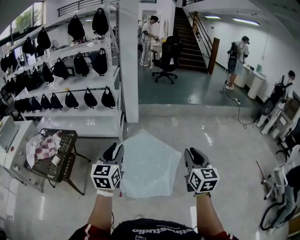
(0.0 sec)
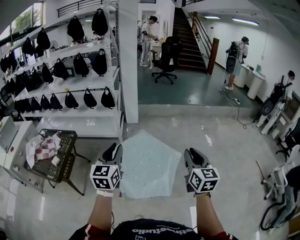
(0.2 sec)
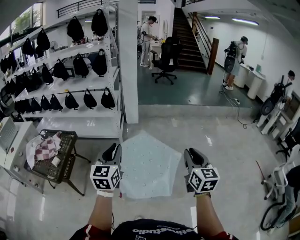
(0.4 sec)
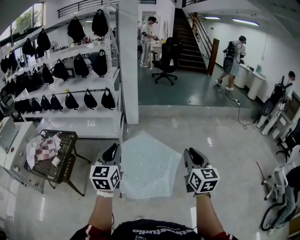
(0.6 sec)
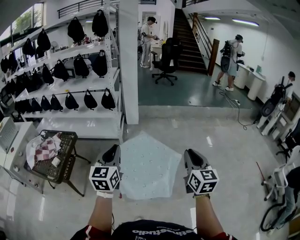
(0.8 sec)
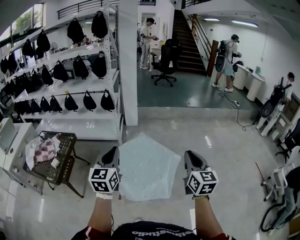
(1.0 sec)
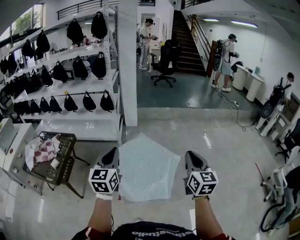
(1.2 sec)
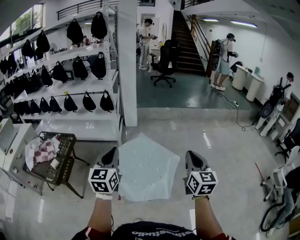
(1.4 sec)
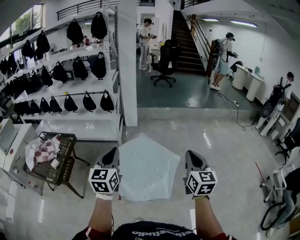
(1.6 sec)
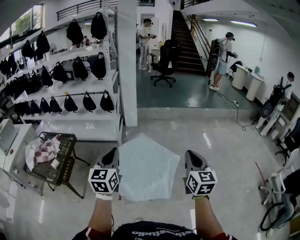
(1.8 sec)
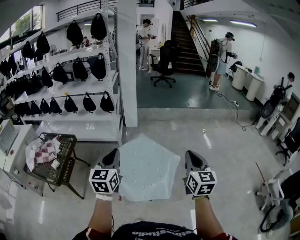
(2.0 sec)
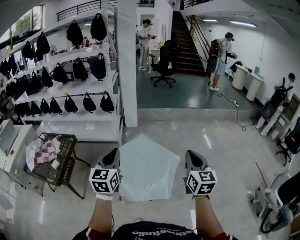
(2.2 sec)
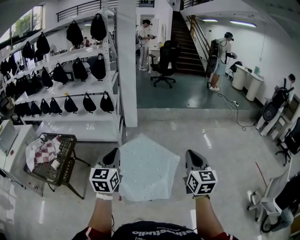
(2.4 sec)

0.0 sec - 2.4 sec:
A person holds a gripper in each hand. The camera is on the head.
0.0 sec - 1.2 sec: The left gripper closes up.
1.2 sec - 2.4 sec: Neither gripper changes place.

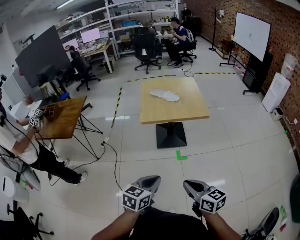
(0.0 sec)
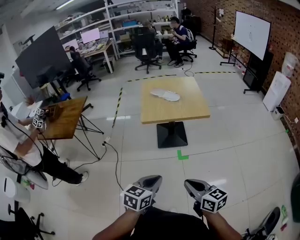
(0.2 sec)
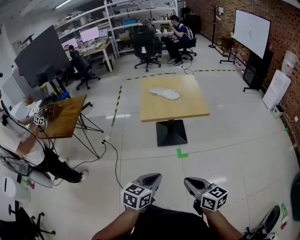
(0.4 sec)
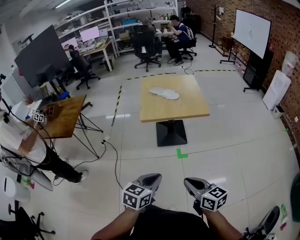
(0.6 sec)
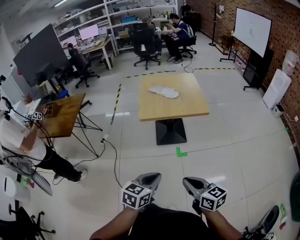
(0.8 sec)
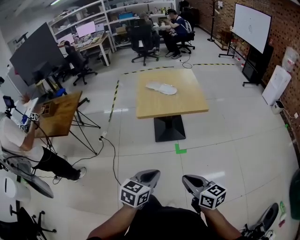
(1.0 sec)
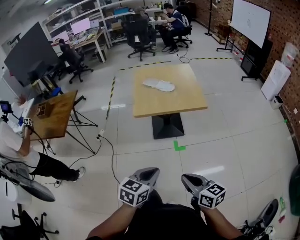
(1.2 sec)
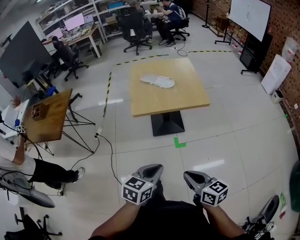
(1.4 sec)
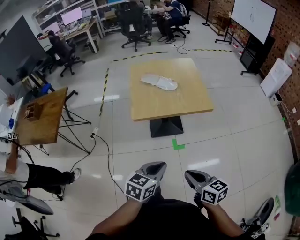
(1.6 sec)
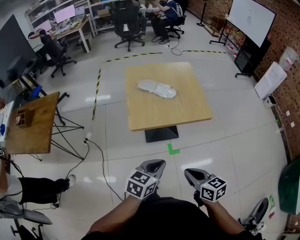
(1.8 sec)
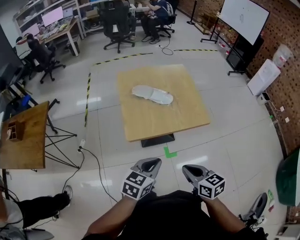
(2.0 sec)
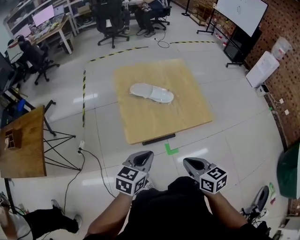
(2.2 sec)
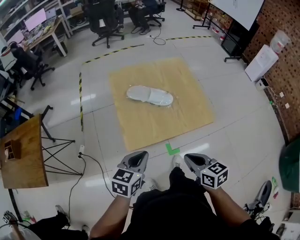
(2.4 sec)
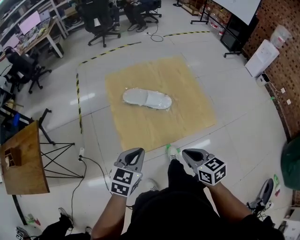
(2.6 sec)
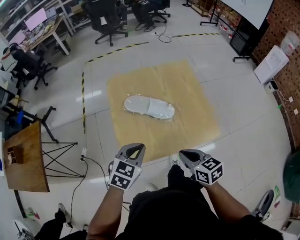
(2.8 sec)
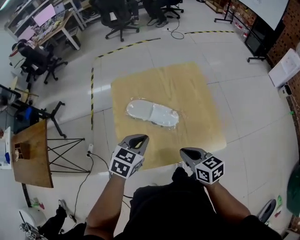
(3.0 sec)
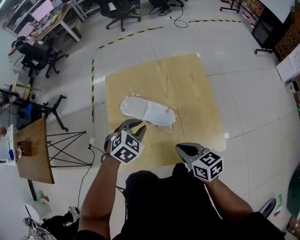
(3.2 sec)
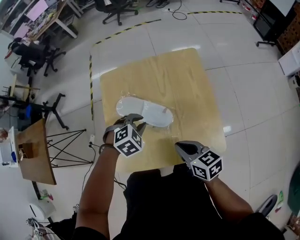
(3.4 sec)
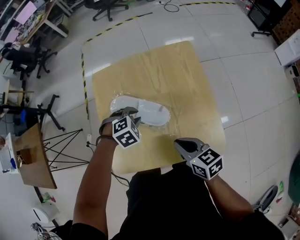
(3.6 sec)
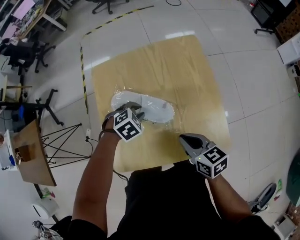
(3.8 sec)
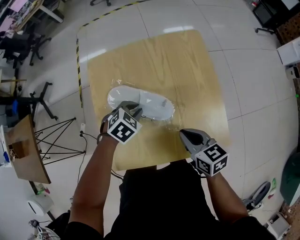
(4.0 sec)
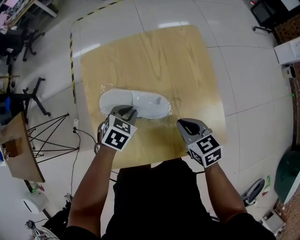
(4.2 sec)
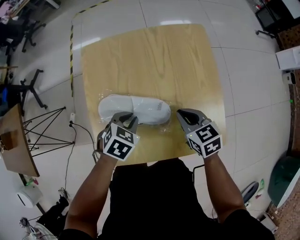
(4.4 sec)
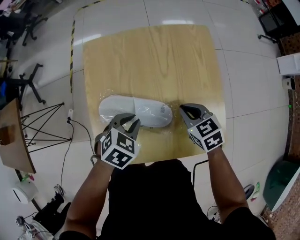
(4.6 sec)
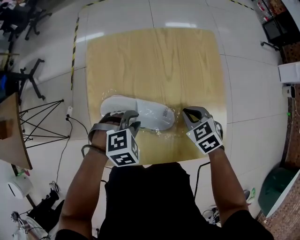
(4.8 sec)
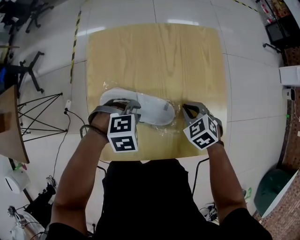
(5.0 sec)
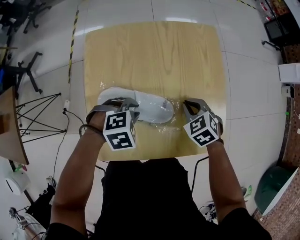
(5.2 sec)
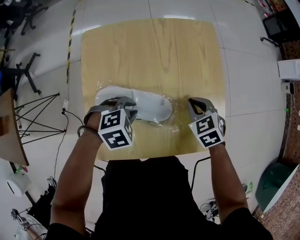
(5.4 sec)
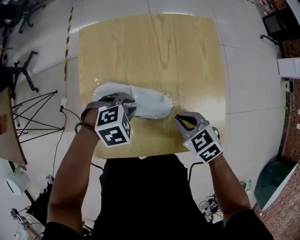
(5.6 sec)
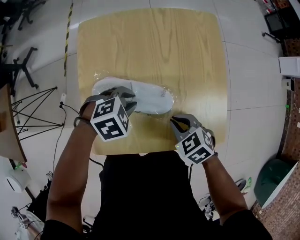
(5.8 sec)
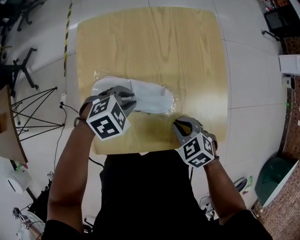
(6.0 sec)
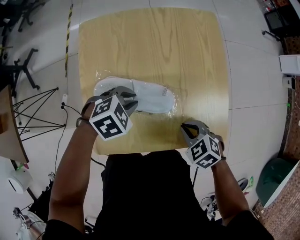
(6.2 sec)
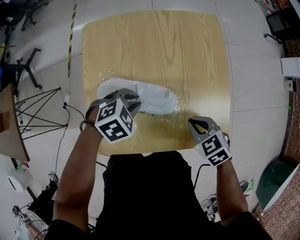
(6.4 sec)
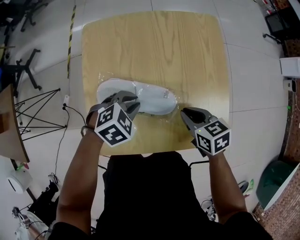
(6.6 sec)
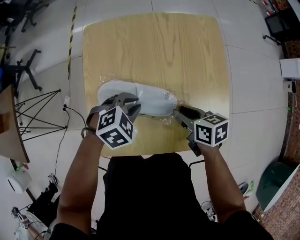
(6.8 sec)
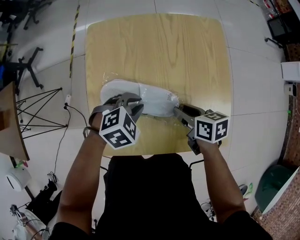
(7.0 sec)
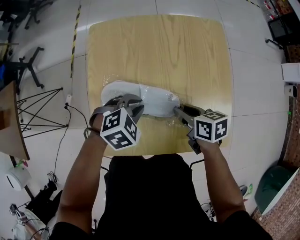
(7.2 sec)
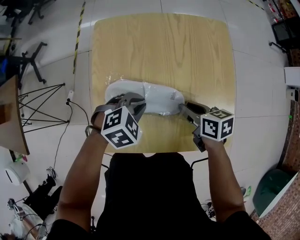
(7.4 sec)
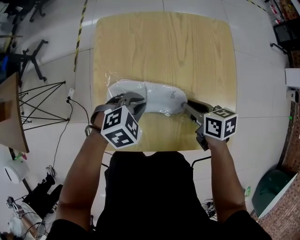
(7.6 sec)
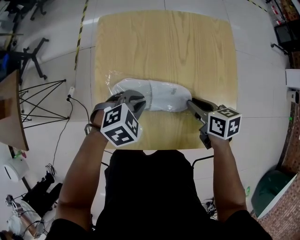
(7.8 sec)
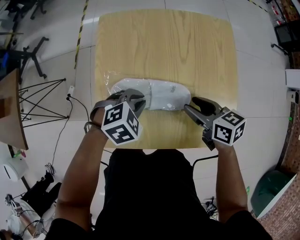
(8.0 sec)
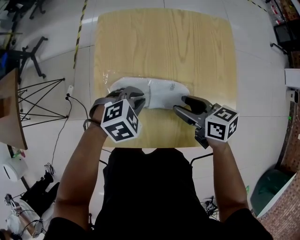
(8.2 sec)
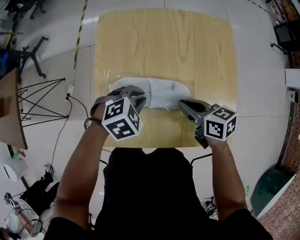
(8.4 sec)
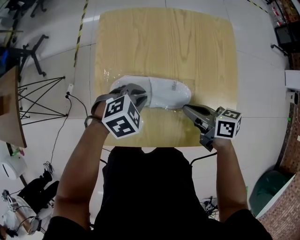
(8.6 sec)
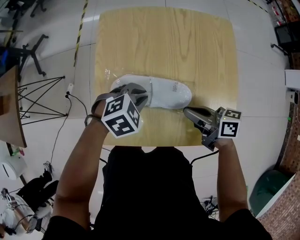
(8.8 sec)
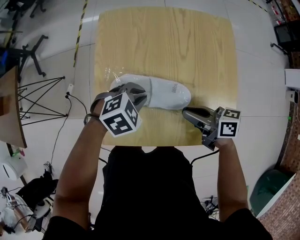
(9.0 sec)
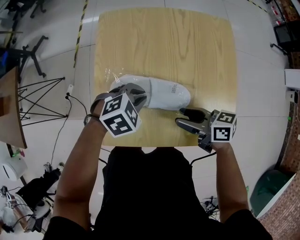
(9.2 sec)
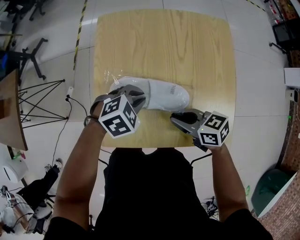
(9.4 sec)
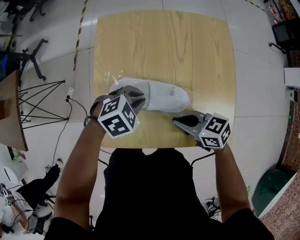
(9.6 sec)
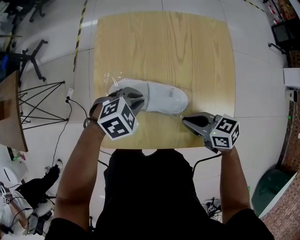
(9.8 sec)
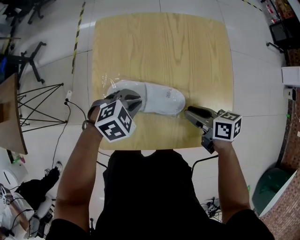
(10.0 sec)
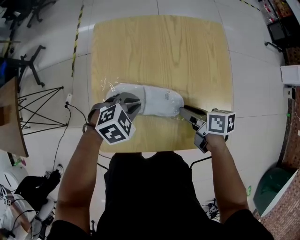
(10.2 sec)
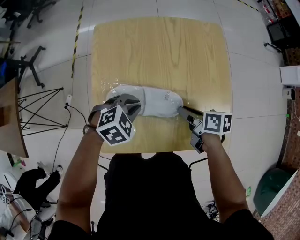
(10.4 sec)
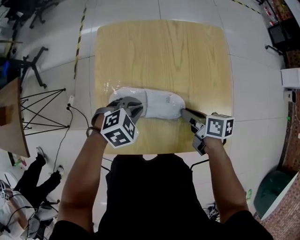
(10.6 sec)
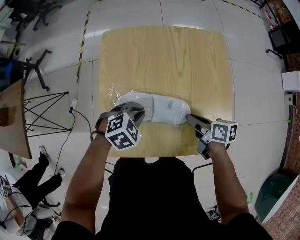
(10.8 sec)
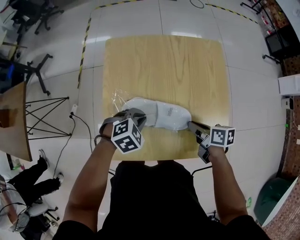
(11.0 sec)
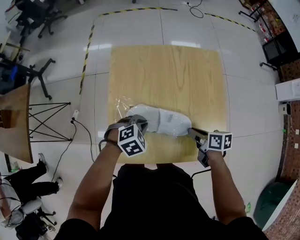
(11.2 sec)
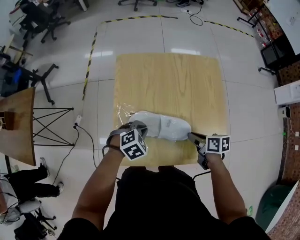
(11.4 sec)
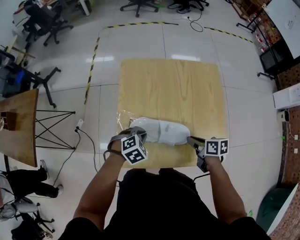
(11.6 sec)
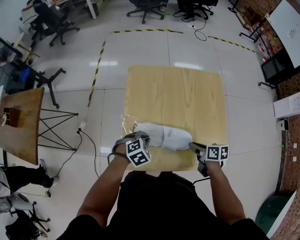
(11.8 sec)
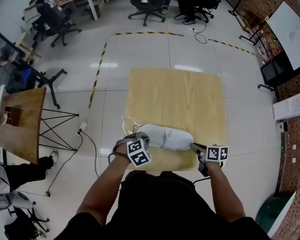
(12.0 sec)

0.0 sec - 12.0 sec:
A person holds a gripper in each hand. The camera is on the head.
0.0 sec - 1.6 sec: The grippers both shift forward by approximately 15 cm.
1.6 sec - 3.0 sec: The pair of grippers is taken forward, roughly 40 cm. The left gripper rotates roughly 20 degrees.
3.0 sec - 4.4 sec: The right gripper is displaced forward and downward by about 20 cm, while the left gripper travels downward and forward by about 15 cm, and turns by roughly 20 degrees.
4.4 sec - 6.0 sec: The left gripper swivels approximately 30 degrees, while the right gripper changes place by about 10 cm, and turns by approximately 30 degrees.
6.0 sec - 7.6 sec: The right gripper changes place by about 10 cm, and rolls clockwise, seen from behind, by approximately 40 degrees.
7.6 sec - 9.0 sec: The right gripper changes place by about 5 cm, turns by some 30 degrees, and opens and closes again.
9.0 sec - 10.4 sec: The right gripper moves downward, approximately 5 cm, rotates approximately 30 degrees, and opens, then closes once more.
10.4 sec - 12.0 sec: The left gripper is displaced to the left by some 5 cm.

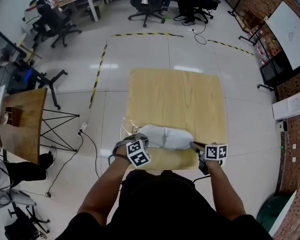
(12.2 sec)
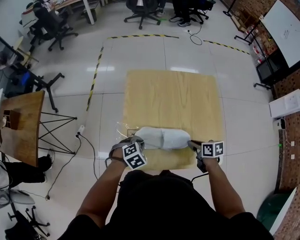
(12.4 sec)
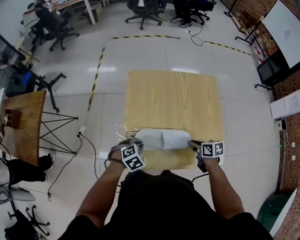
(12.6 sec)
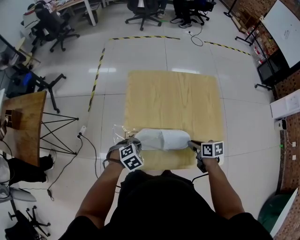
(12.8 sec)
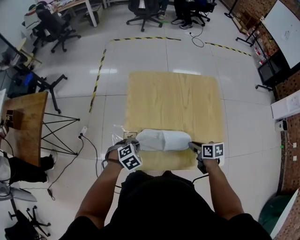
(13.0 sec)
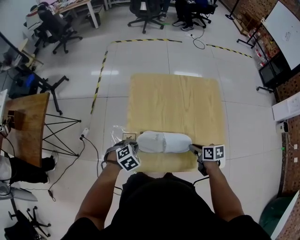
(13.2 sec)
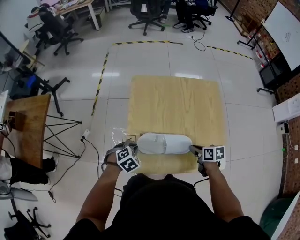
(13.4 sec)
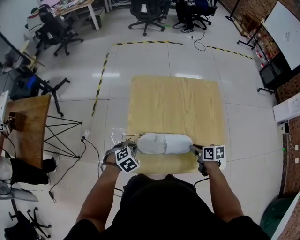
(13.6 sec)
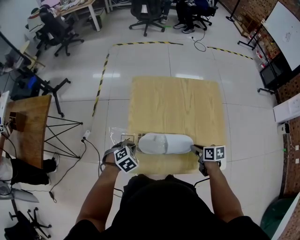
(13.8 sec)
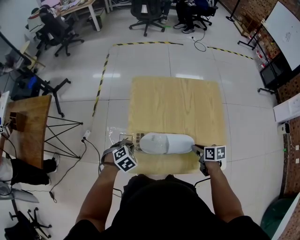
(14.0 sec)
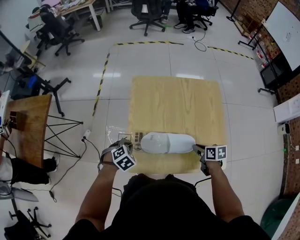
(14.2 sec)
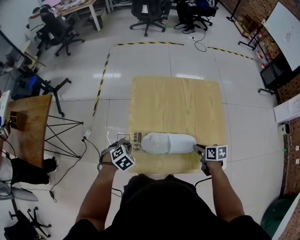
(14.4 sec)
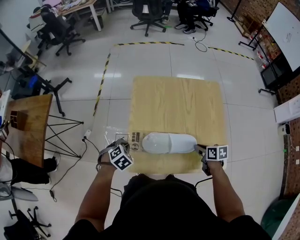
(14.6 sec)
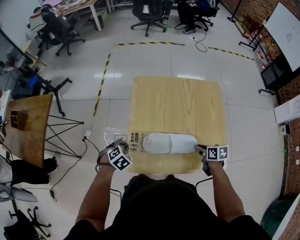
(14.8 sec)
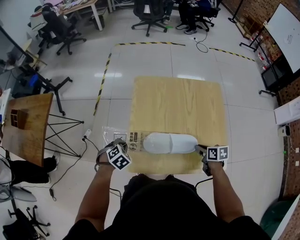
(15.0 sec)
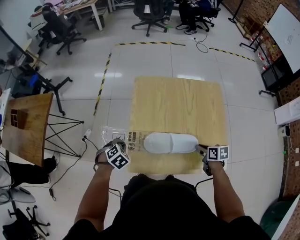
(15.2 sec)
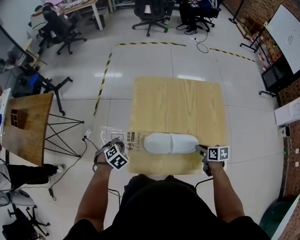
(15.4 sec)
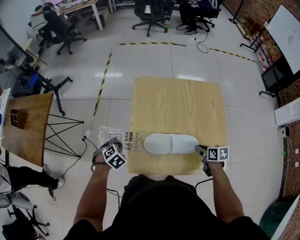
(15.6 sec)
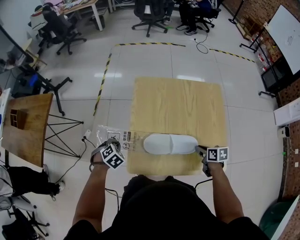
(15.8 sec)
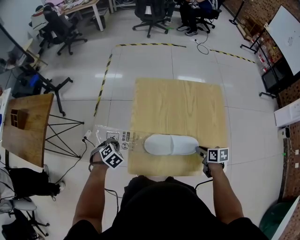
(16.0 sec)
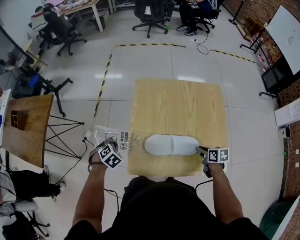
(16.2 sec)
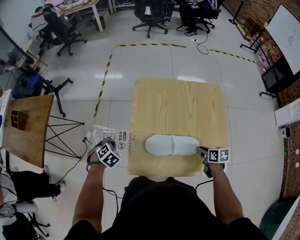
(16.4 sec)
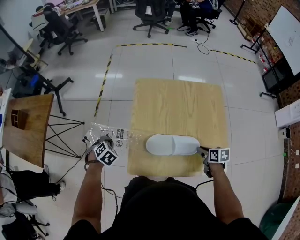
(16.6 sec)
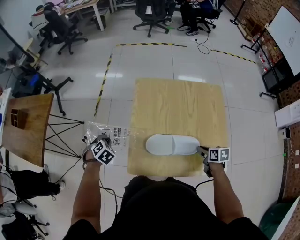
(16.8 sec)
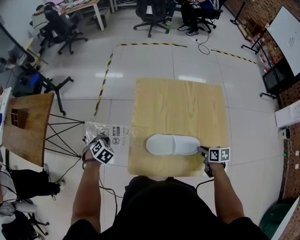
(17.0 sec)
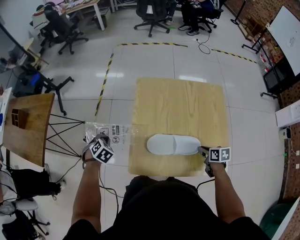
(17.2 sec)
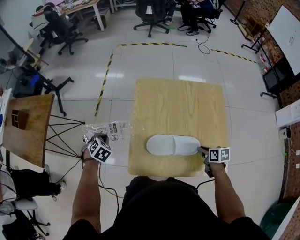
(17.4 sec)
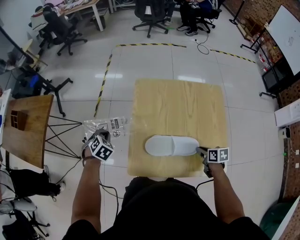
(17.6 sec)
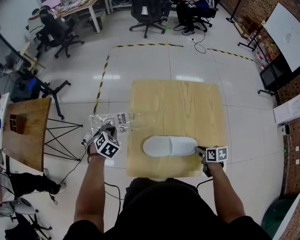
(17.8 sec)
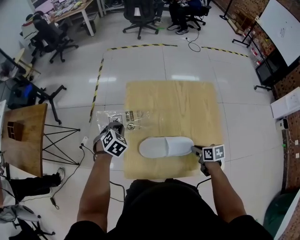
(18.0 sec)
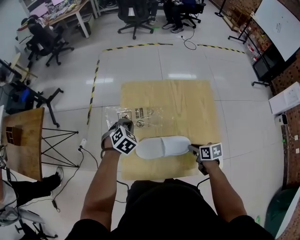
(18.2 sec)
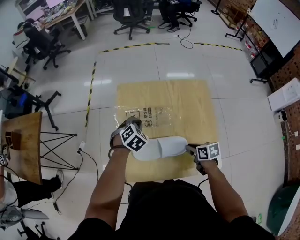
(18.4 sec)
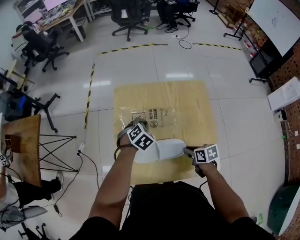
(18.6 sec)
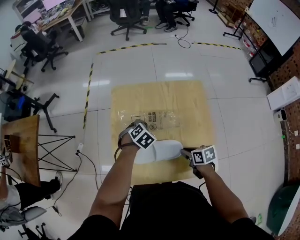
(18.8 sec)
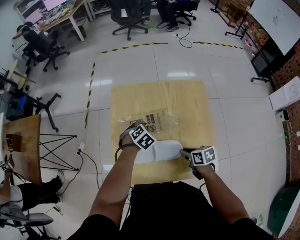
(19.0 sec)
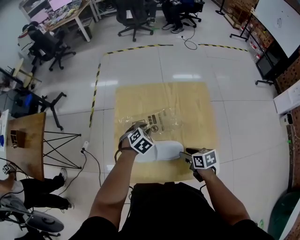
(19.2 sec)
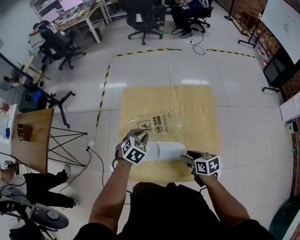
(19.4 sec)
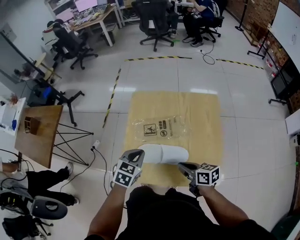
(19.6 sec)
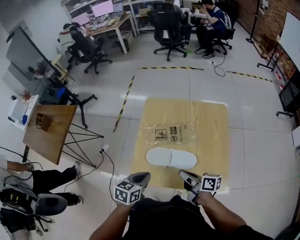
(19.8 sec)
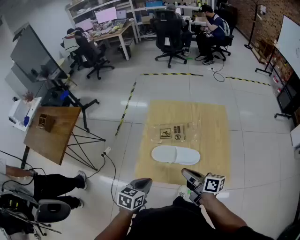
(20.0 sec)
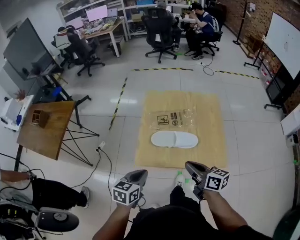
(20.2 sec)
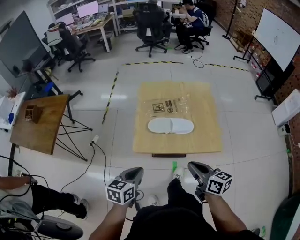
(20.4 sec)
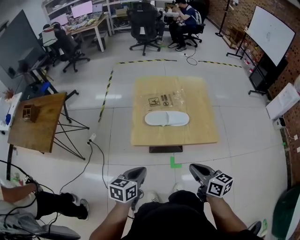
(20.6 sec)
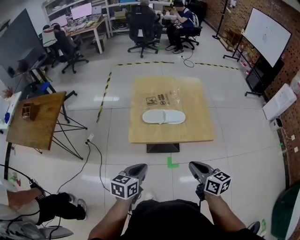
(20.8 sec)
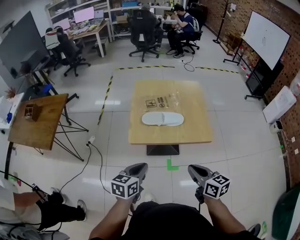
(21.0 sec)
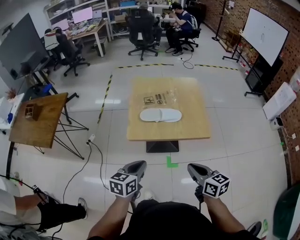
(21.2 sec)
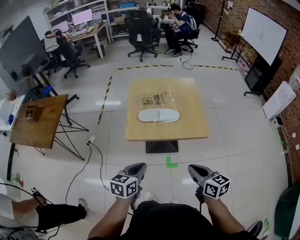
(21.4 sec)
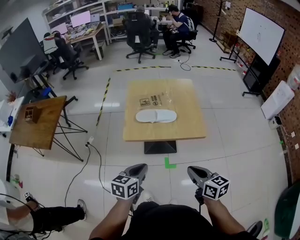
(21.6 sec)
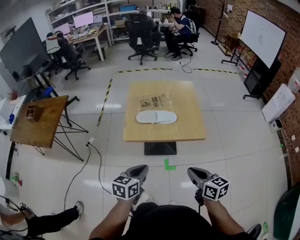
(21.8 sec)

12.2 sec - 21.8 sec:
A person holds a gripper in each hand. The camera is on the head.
12.2 sec - 13.8 sec: The left gripper travels to the left by approximately 5 cm.
13.8 sec - 15.4 sec: The left gripper shifts about 10 cm to the left.
15.4 sec - 17.0 sec: The left gripper travels to the left and forward by about 10 cm.
17.0 sec - 18.6 sec: The left gripper is displaced to the right by approximately 35 cm, and changes its angle by roughly 20 degrees.
18.6 sec - 20.2 sec: The left gripper shifts some 35 cm backward and to the left, rotates around the line of its fingers by approximately 50 degrees, counterclockwise from behind, and opens and closes again. Meanwhile the right gripper heads upward, to the left and backward, covering approximately 25 cm, tilts its fingers roughly 40 degrees upward, and opens, then closes again.
20.2 sec - 21.8 sec: The right gripper heads backward, covering some 25 cm. Meanwhile the left gripper moves backward and to the right, about 20 cm.
